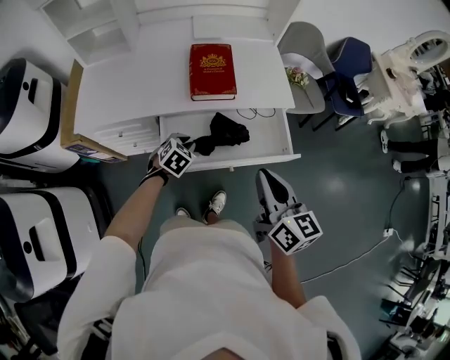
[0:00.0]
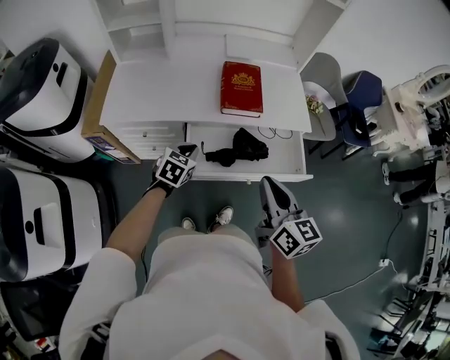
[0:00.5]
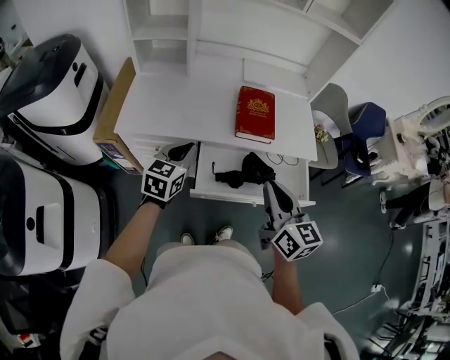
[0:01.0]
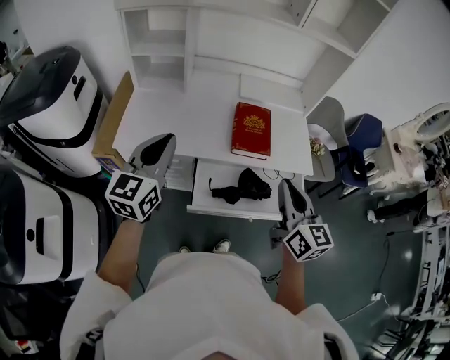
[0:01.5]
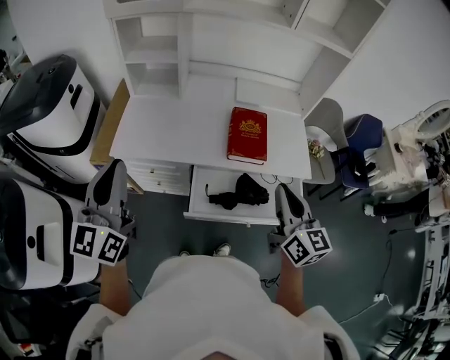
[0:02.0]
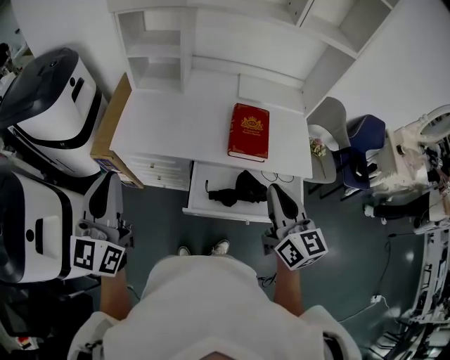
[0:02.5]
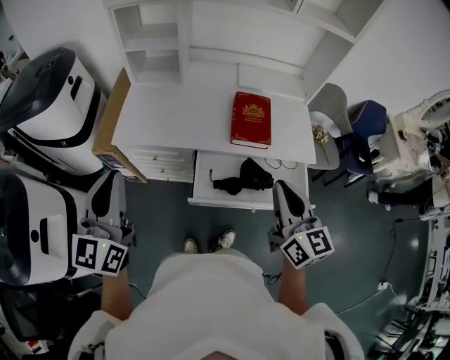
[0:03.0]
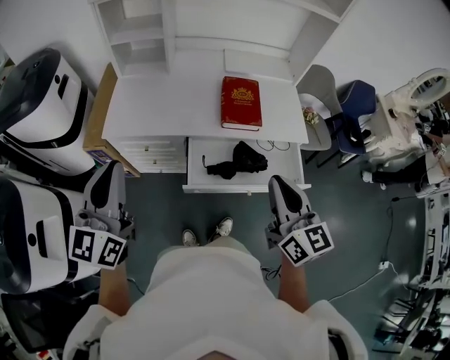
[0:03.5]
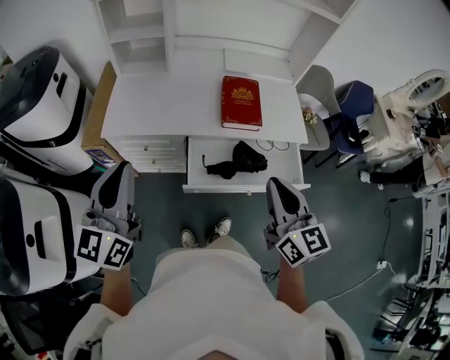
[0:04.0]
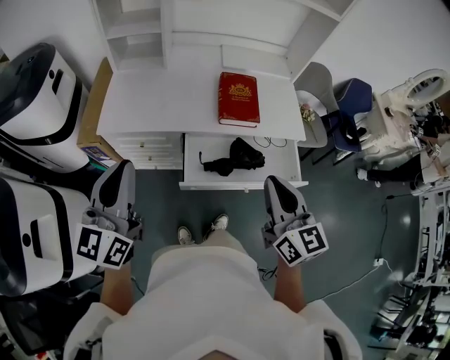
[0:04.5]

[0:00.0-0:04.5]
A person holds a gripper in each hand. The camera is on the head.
0:00.0 to 0:02.0: The left gripper is displaced upward and to the left by some 50 cm, and points its fingers roughly 60 degrees further upward; the right gripper heads forward, upward and to the left, covering roughly 15 cm.
0:02.0 to 0:04.5: The left gripper travels backward by some 5 cm. Meanwhile the right gripper heads backward, covering about 10 cm.

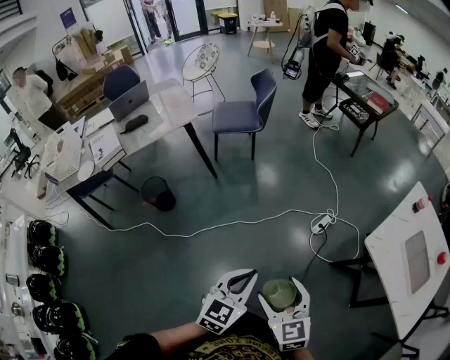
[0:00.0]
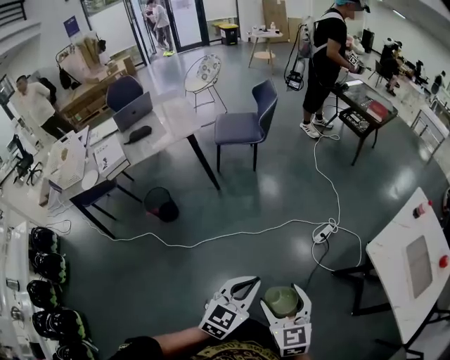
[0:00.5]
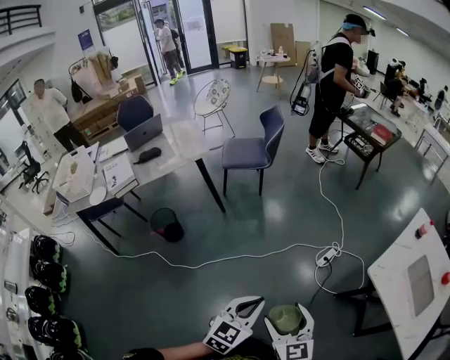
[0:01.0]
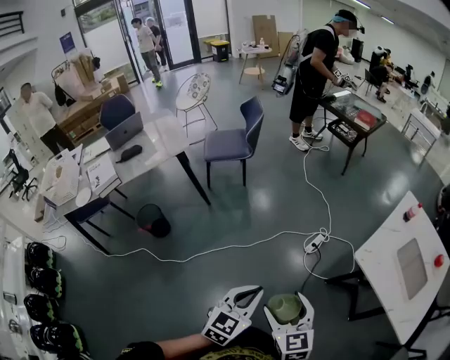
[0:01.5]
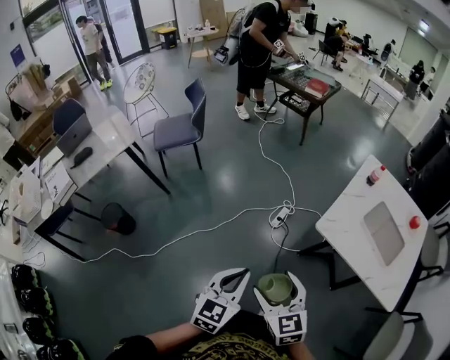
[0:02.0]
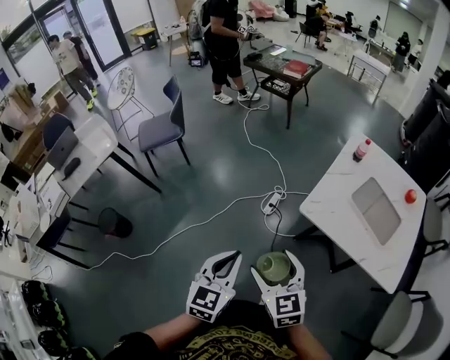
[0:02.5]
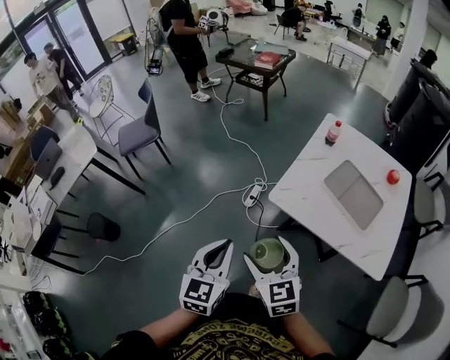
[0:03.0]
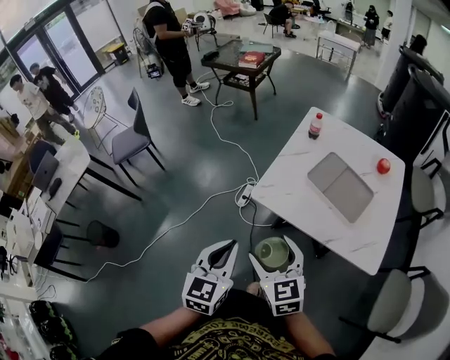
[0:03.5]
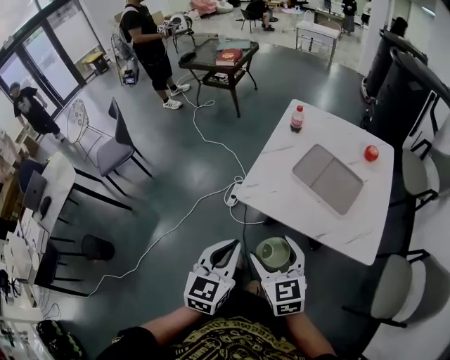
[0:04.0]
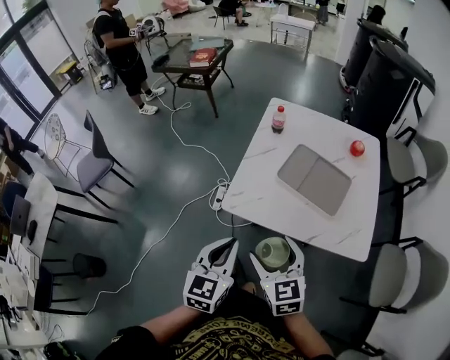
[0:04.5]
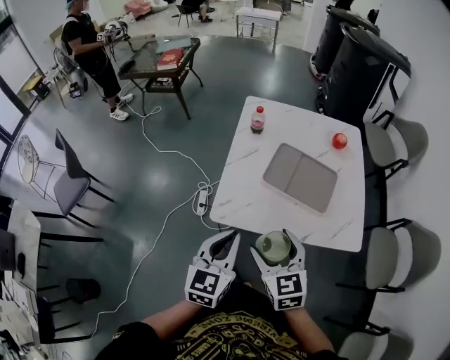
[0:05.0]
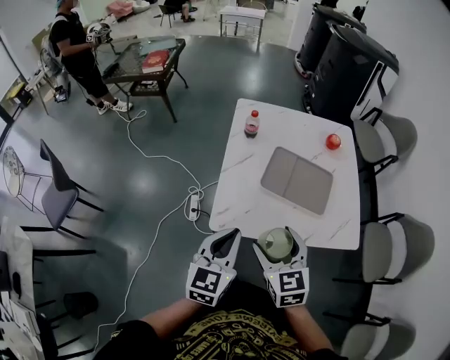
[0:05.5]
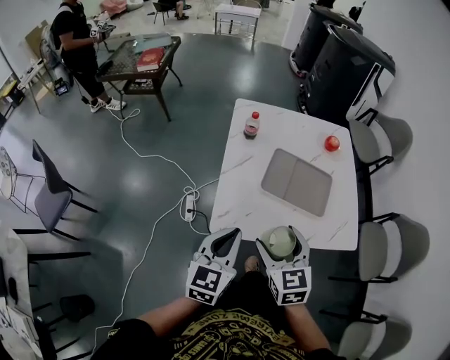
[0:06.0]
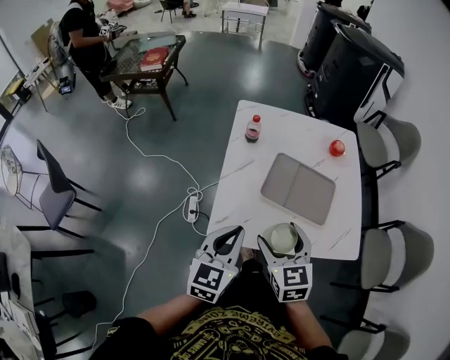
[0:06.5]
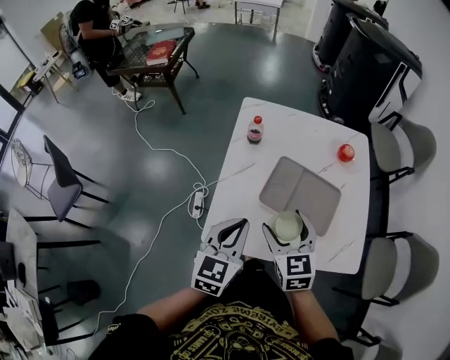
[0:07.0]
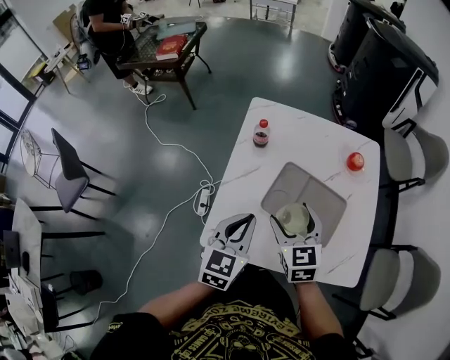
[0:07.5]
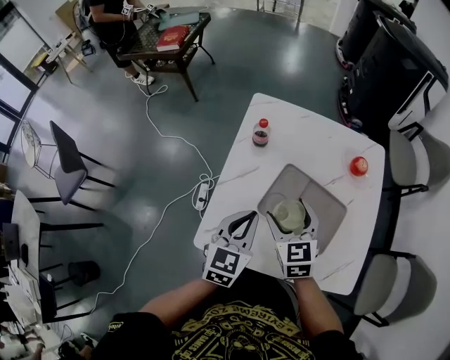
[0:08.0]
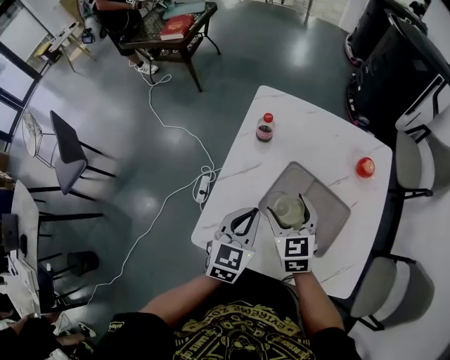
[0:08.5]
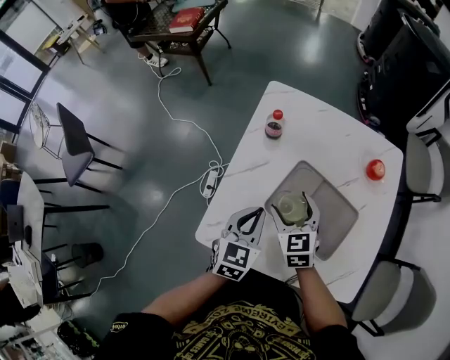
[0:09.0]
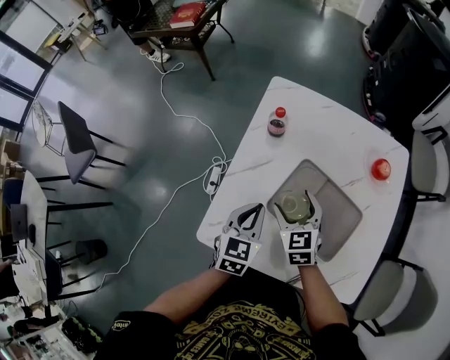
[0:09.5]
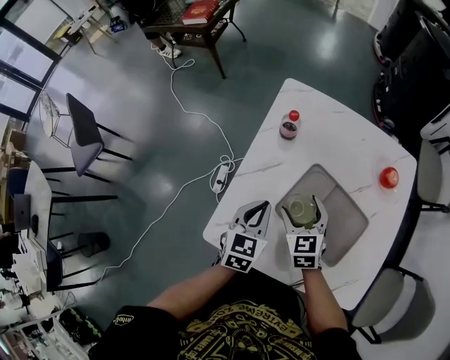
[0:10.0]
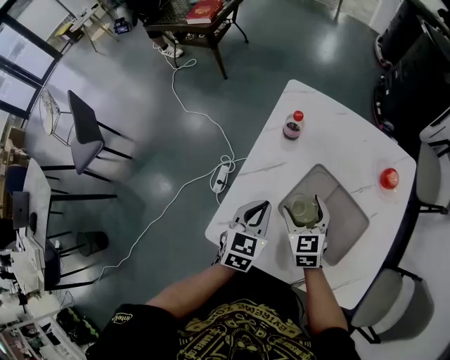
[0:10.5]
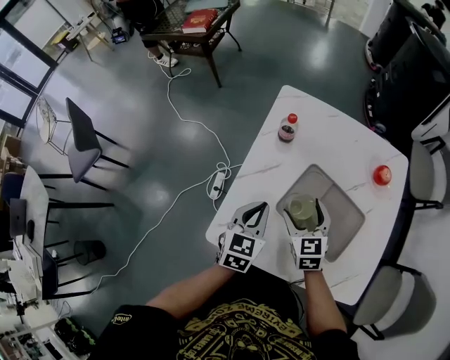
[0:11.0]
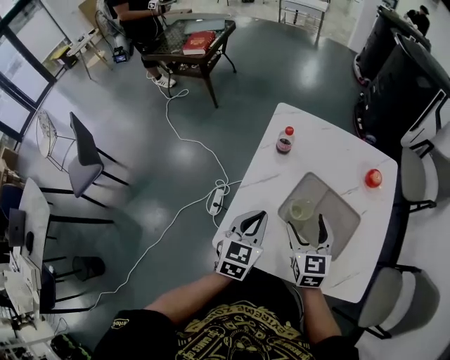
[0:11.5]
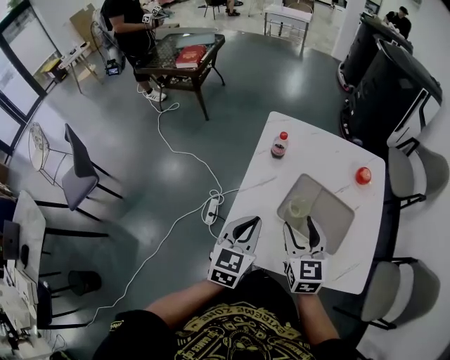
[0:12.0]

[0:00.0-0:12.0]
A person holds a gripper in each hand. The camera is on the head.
0:00.0 to 0:02.0: Both grippers travel together to the right, some 15 cm.
0:02.0 to 0:04.0: The grippers both shift to the right by approximately 30 cm.
0:04.0 to 0:06.0: The right gripper moves roughly 15 cm, and swivels about 30 degrees. The left gripper changes place by approximately 20 cm, and rotates roughly 20 degrees.
0:06.0 to 0:08.0: The right gripper is displaced forward by some 20 cm; the left gripper is displaced forward and to the right by approximately 20 cm.
0:08.0 to 0:10.0: Both grippers travel together downward, some 10 cm.
0:10.0 to 0:12.0: The left gripper heads upward, backward and to the left, covering some 15 cm; the right gripper heads upward and backward, covering approximately 20 cm, and rotates about 20 degrees.

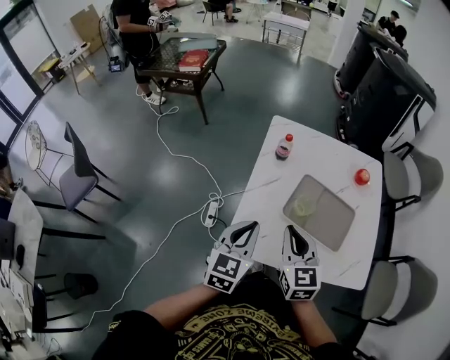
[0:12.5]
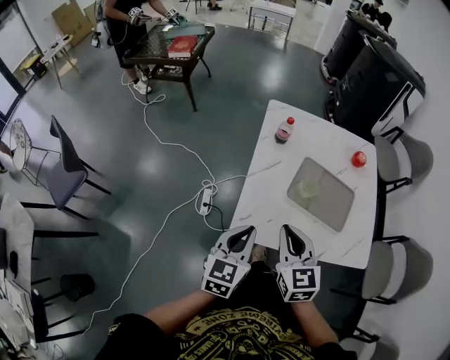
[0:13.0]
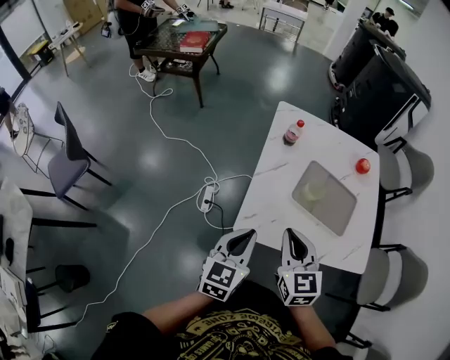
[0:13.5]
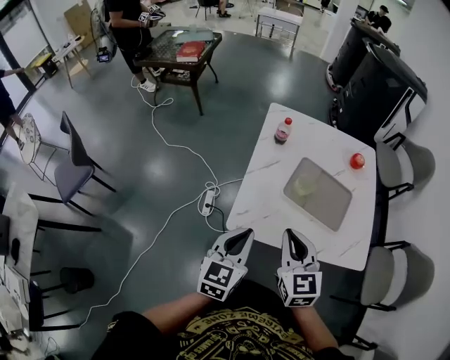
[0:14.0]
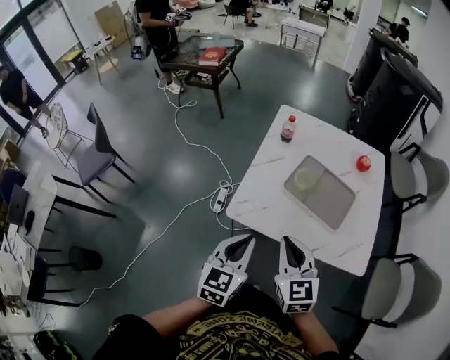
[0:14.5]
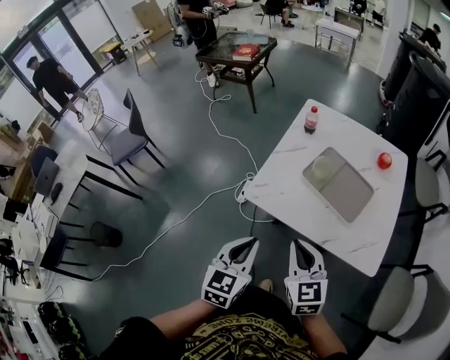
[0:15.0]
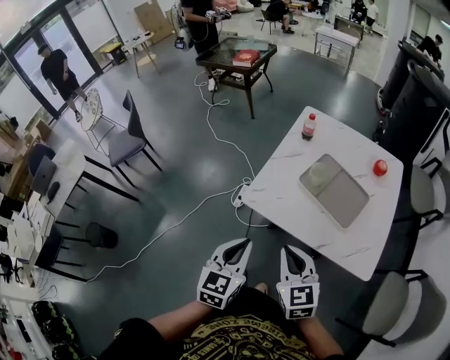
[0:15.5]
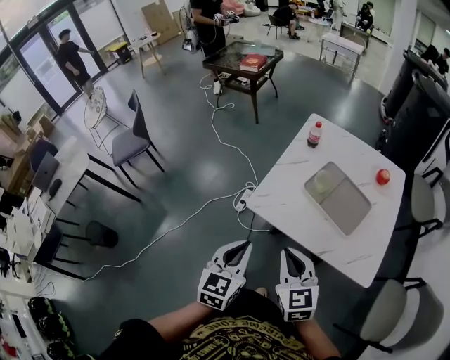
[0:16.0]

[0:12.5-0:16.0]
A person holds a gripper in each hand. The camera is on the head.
0:12.5 to 0:14.5: Both grippers move backward, approximately 15 cm.
0:14.5 to 0:16.0: The two grippers go some 5 cm backward.

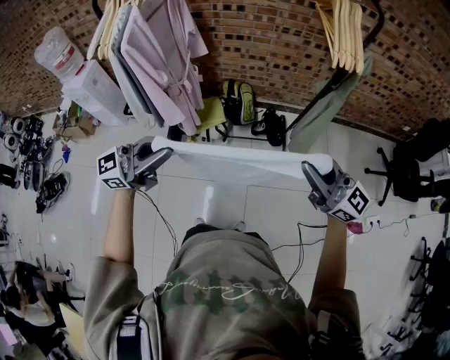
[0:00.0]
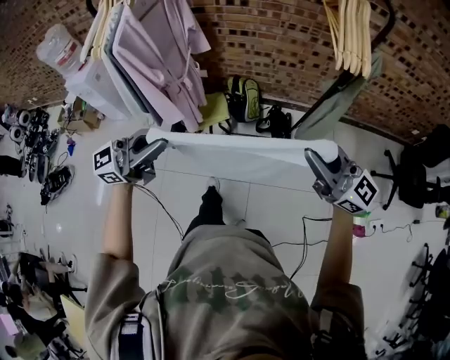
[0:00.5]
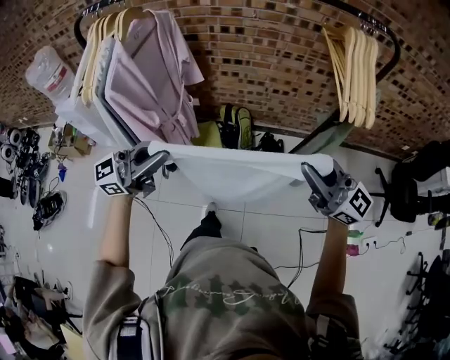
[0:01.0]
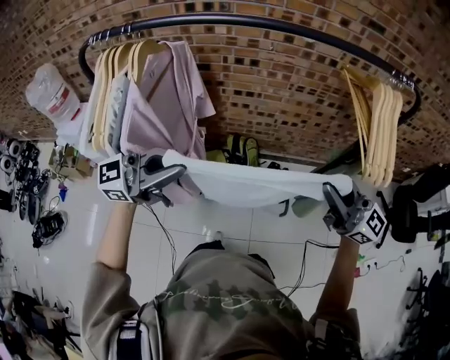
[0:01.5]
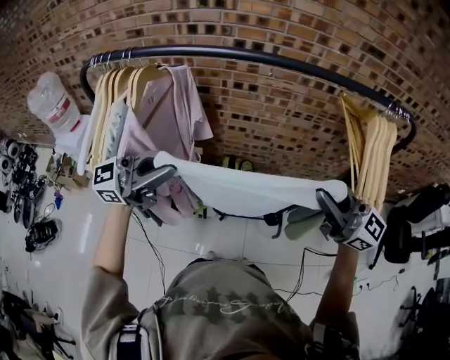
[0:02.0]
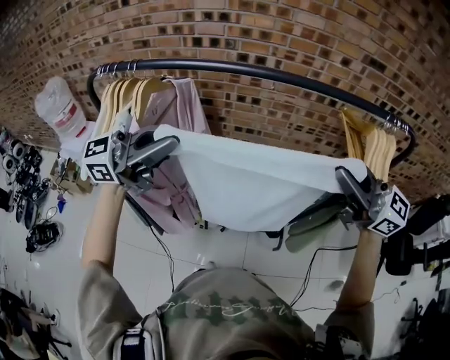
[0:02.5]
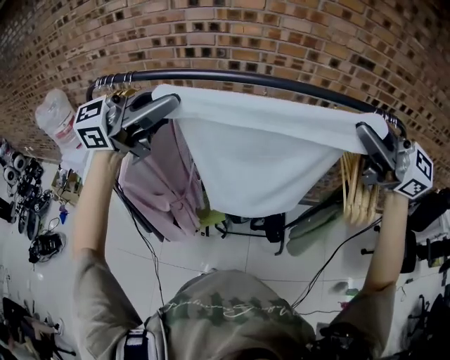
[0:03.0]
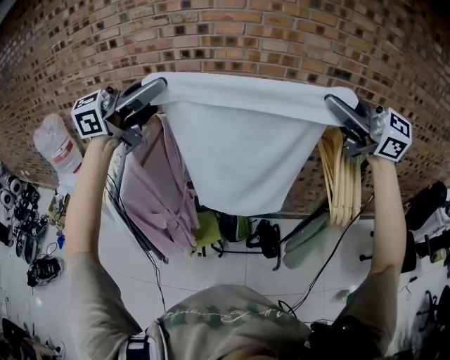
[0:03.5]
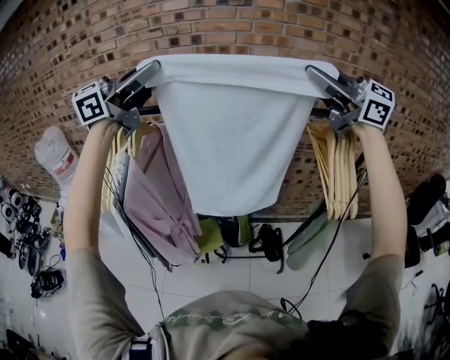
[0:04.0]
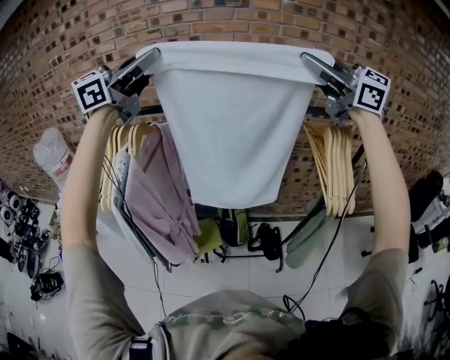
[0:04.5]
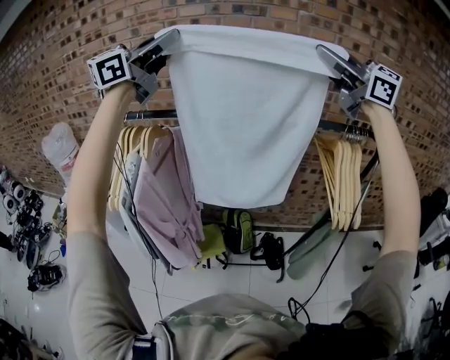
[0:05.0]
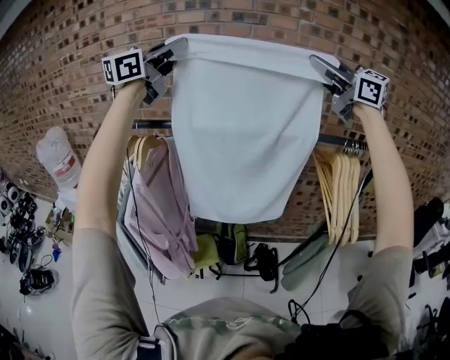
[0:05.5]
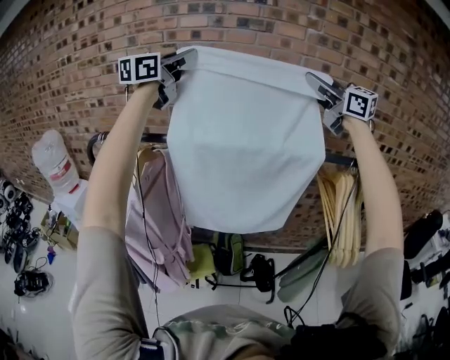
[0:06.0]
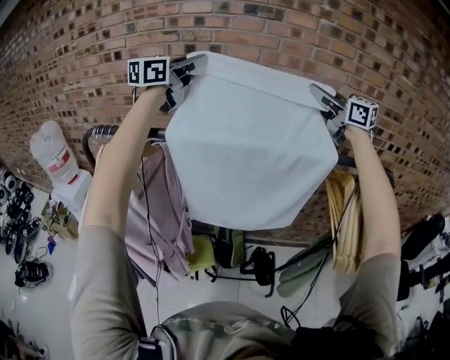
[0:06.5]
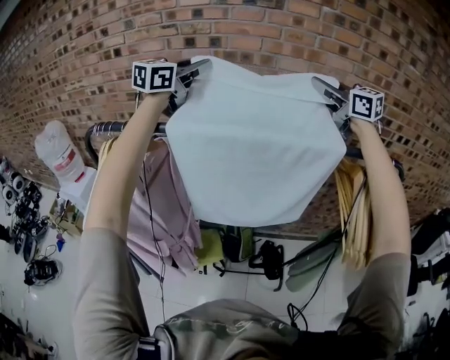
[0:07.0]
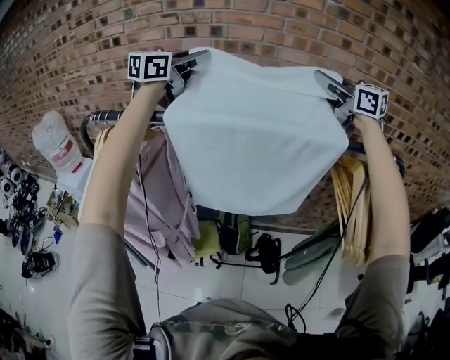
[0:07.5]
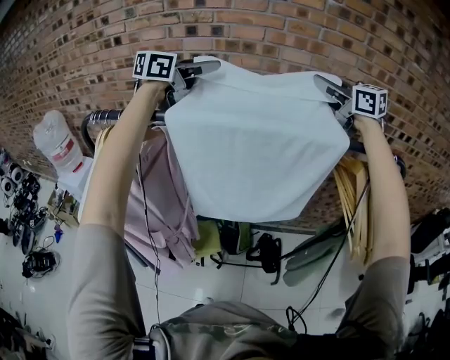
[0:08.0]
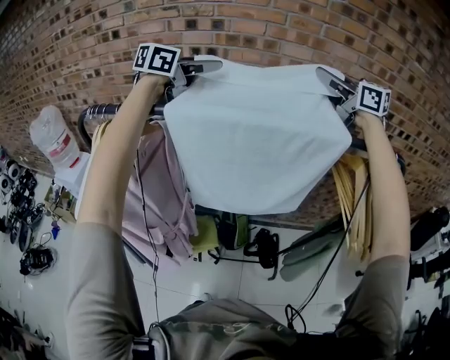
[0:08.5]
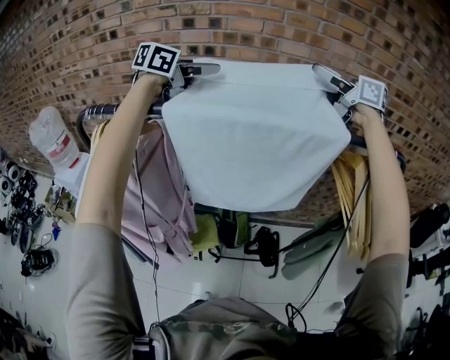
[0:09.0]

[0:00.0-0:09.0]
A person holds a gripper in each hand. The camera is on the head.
0:00.0 to 0:02.0: The left gripper ends up approximately 35 cm from where it was, while the right gripper shifts by roughly 35 cm.
0:02.0 to 0:04.5: The two grippers go approximately 30 cm upward. The left gripper changes its angle by some 20 degrees.
0:04.5 to 0:07.0: Both grippers travel together forward, roughly 25 cm. The right gripper rotates about 20 degrees, while the left gripper turns by approximately 20 degrees.
0:07.0 to 0:09.0: The right gripper opens up. The left gripper is displaced downward by approximately 5 cm, swivels approximately 20 degrees, and opens its fingers.
